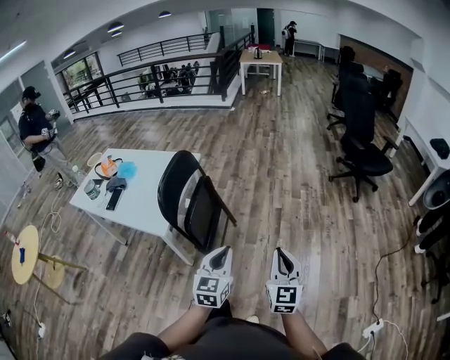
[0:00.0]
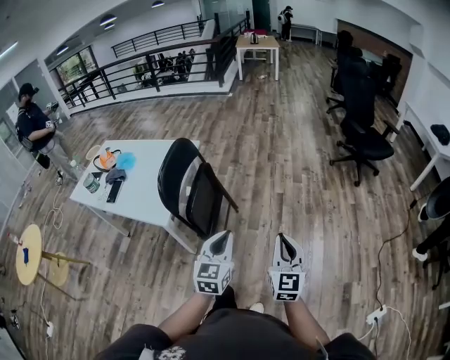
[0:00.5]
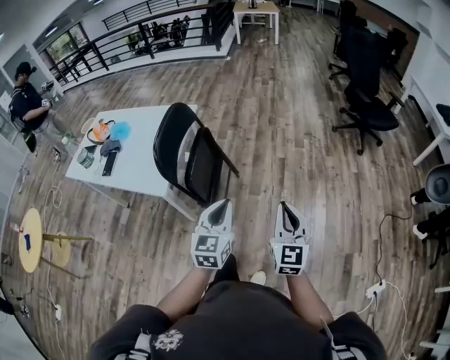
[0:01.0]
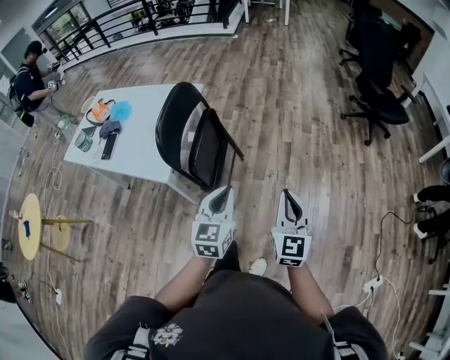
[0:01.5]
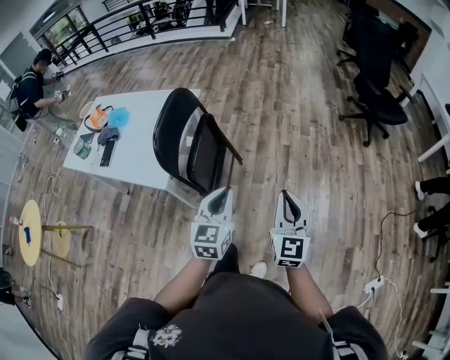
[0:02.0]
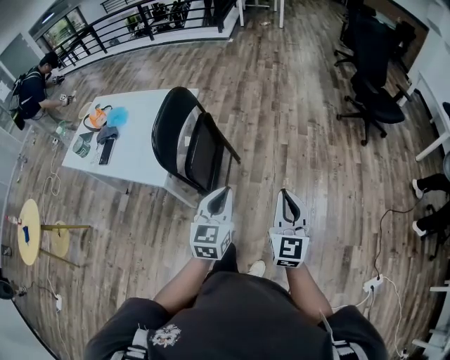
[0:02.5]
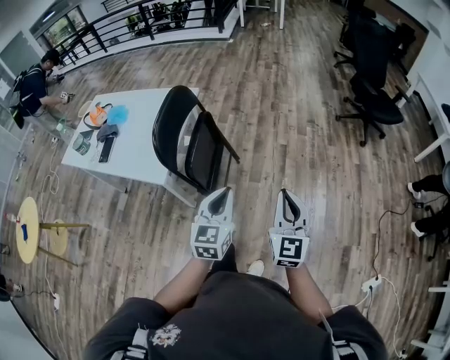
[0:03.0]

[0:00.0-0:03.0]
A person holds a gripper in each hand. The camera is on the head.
0:00.0 to 0:01.5: The right gripper heads forward, covering about 5 cm, while the left gripper travels forward and to the left by approximately 10 cm.
0:01.5 to 0:03.0: The grippers make only small movements.

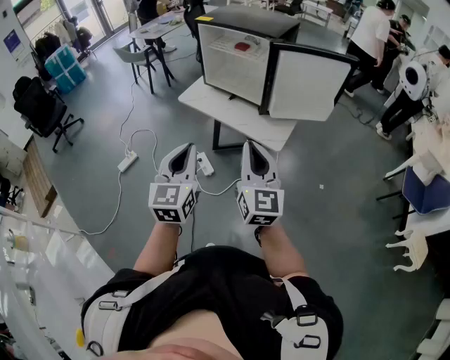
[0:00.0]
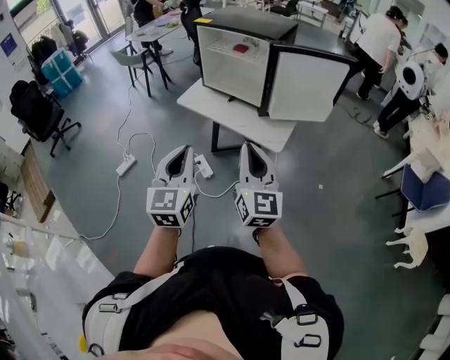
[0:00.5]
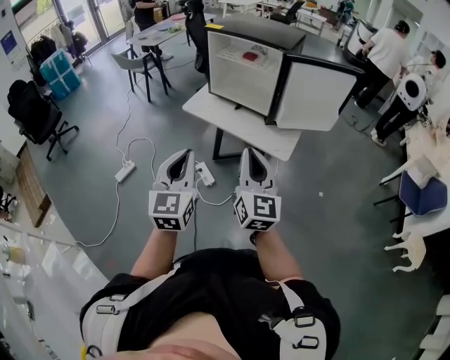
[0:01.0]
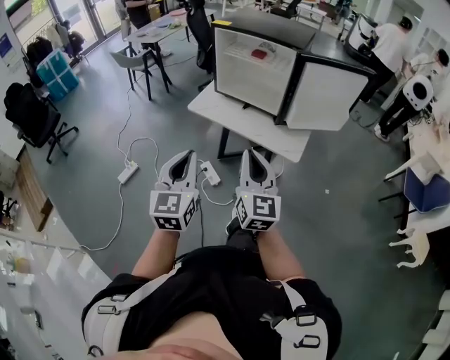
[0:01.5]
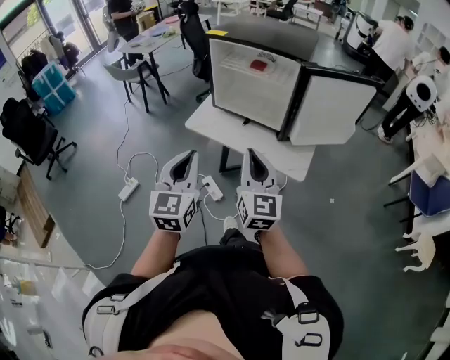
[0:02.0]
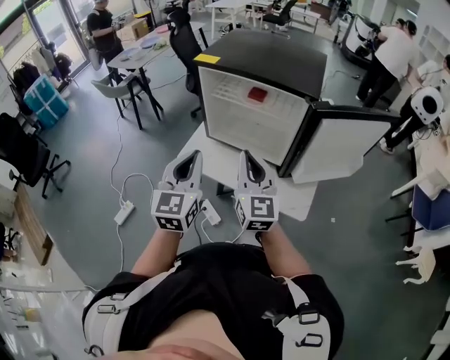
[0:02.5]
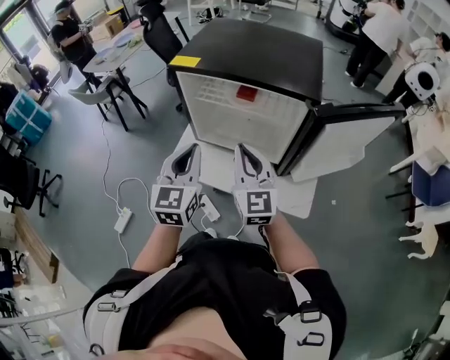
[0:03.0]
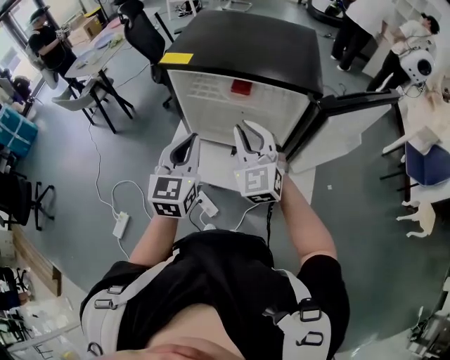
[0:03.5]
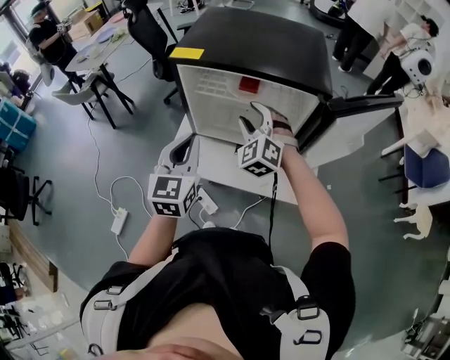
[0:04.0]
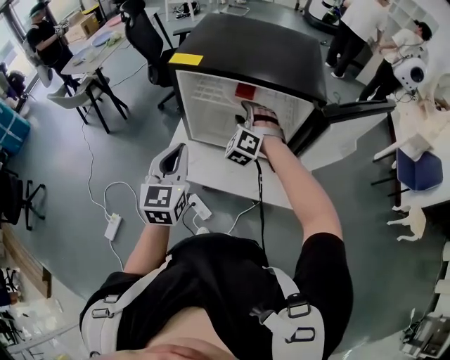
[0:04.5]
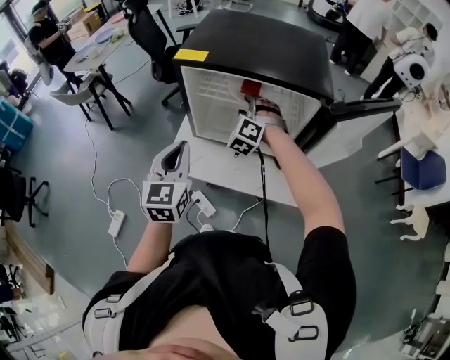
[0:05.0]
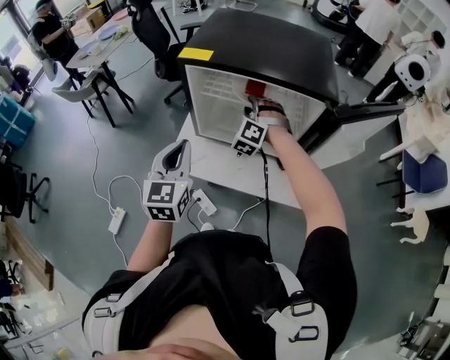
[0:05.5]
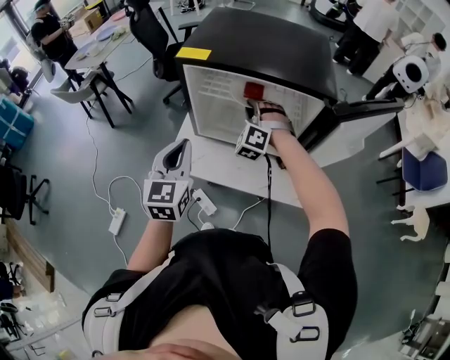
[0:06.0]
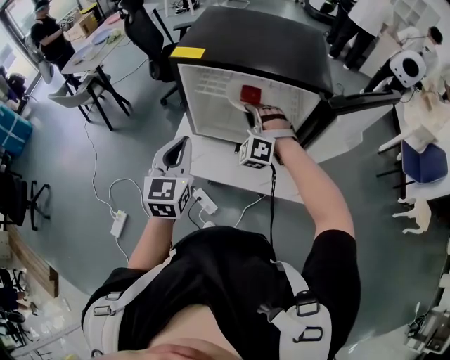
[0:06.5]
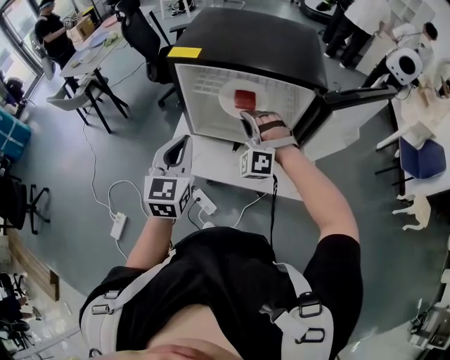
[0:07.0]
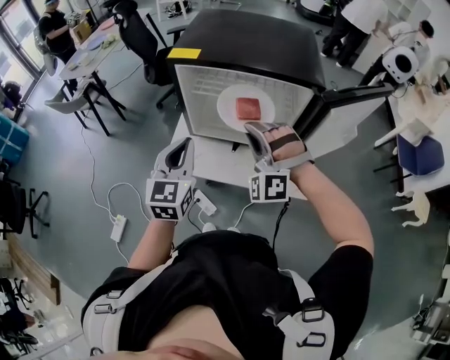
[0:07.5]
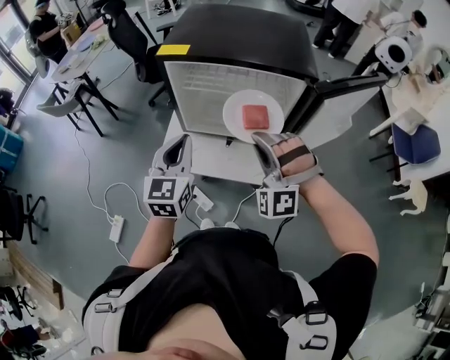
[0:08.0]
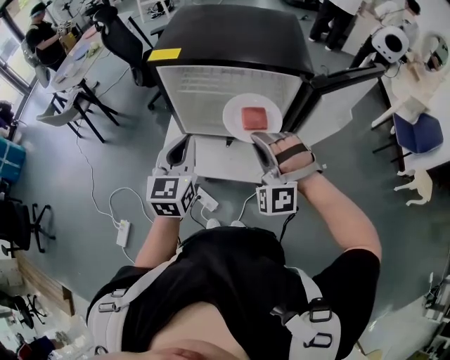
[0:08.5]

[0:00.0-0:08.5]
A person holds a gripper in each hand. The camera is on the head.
0:00.0 to 0:02.0: The two grippers go some 20 cm forward and to the left.
0:02.0 to 0:04.0: Both grippers travel together forward, about 35 cm. The right gripper rotates around the line of its fingers by about 50 degrees, counterclockwise from behind, and opens up.
0:04.0 to 0:06.5: The right gripper rotates some 30 degrees, and closes its fingers.
0:06.5 to 0:08.5: The right gripper is displaced backward by some 15 cm.

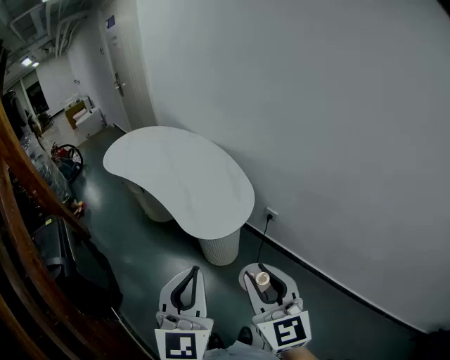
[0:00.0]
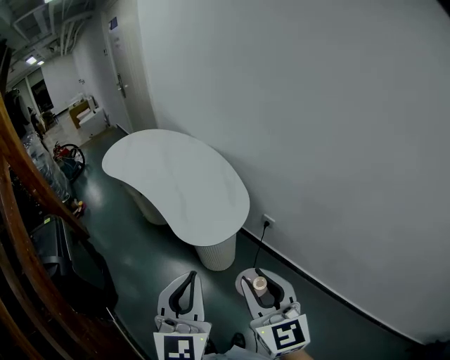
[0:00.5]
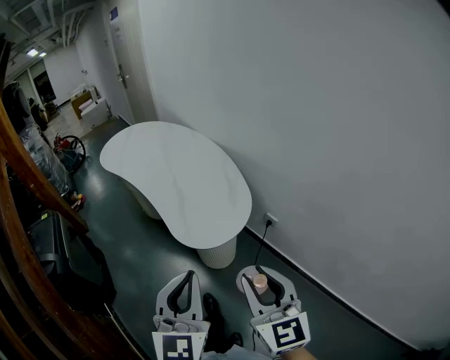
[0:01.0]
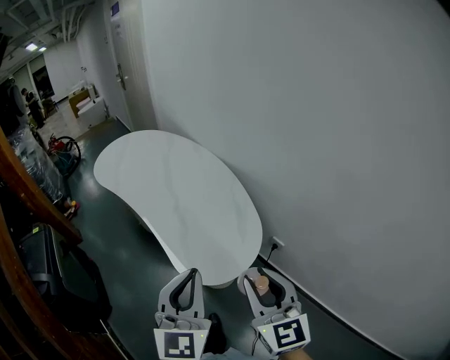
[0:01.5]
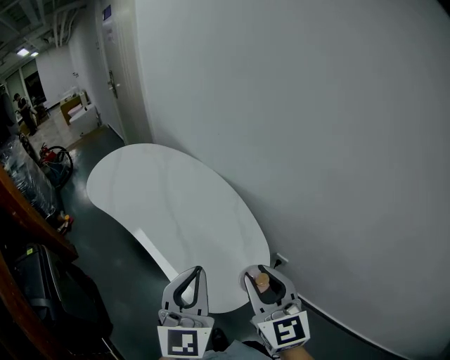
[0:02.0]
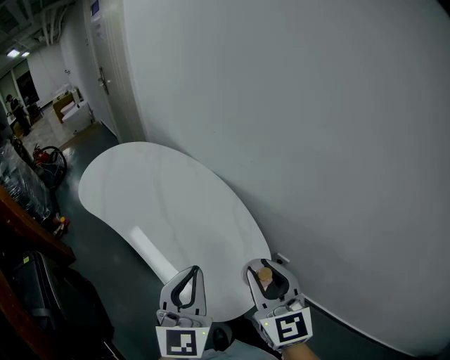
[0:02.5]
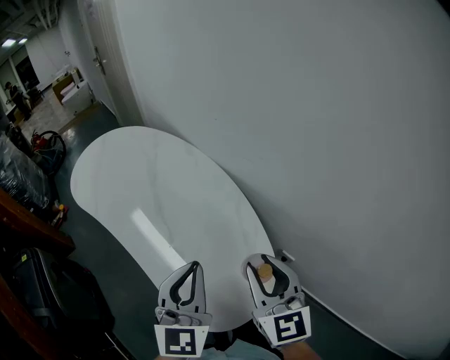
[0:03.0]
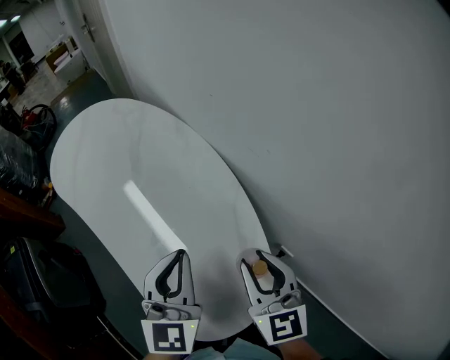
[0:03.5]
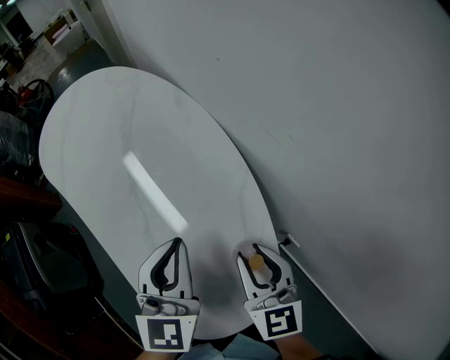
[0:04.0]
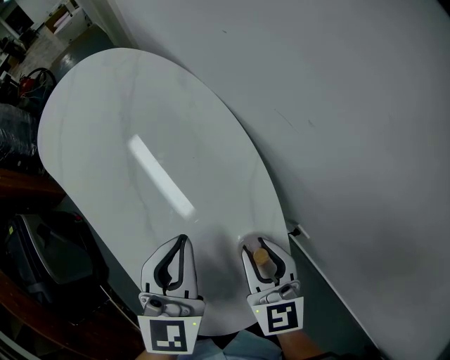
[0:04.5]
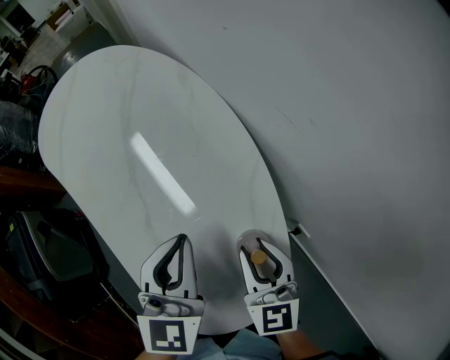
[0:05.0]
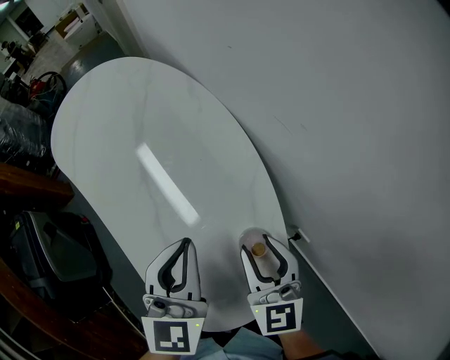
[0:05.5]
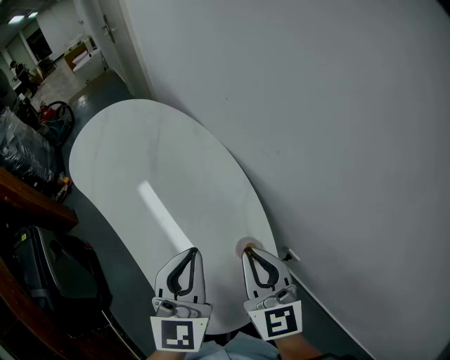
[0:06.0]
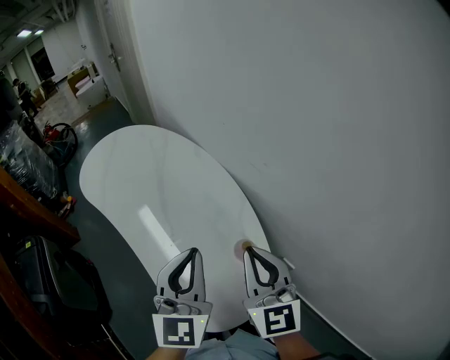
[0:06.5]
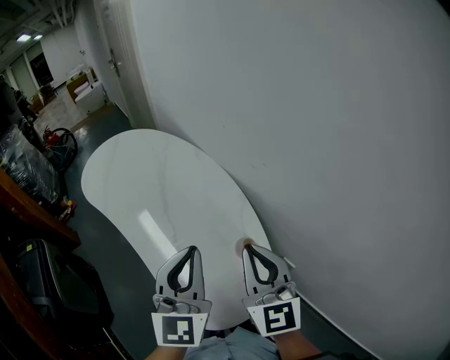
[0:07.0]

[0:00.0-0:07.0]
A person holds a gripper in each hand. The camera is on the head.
0:00.0 to 0:02.0: Both grippers move forward, roughly 20 cm.
0:02.0 to 0:03.5: The left gripper goes approximately 15 cm forward and downward, while the right gripper goes about 15 cm forward.
0:03.5 to 0:05.0: The right gripper goes roughly 10 cm downward.
0:05.0 to 0:07.0: The two grippers go some 15 cm upward. The left gripper changes its angle by roughly 20 degrees; the right gripper changes its angle by some 30 degrees, and closes up.

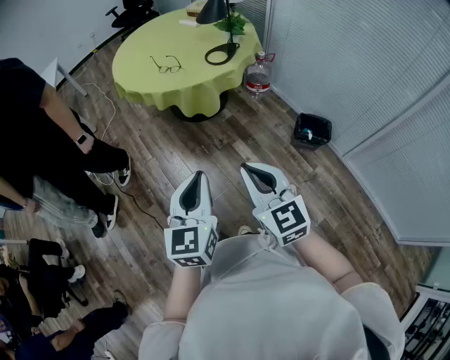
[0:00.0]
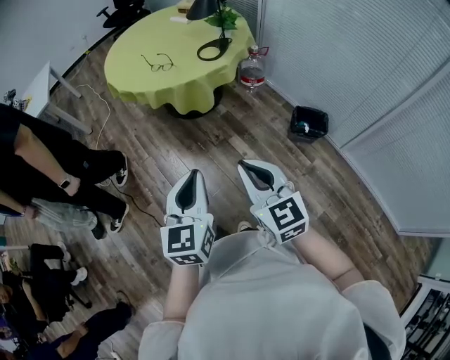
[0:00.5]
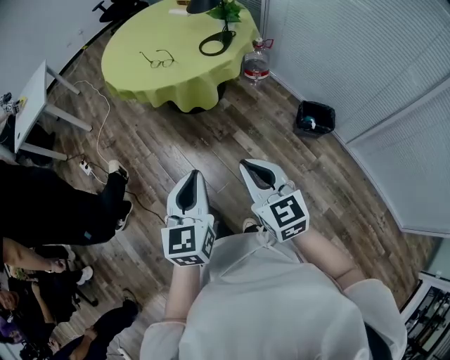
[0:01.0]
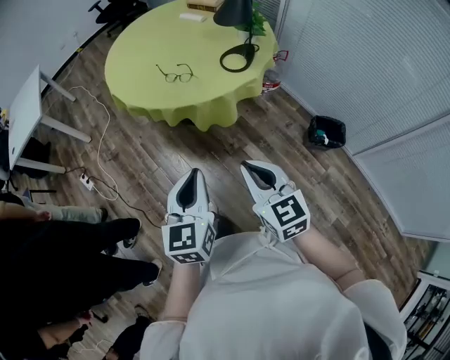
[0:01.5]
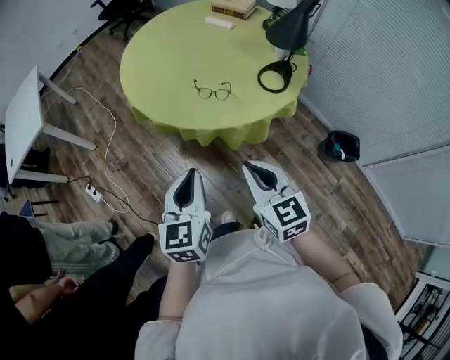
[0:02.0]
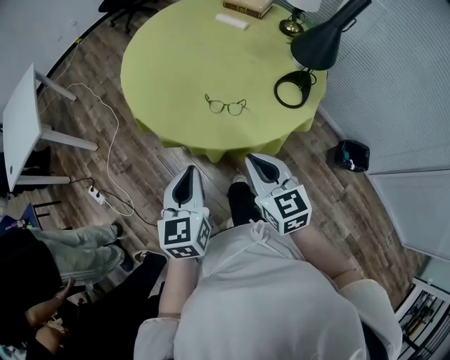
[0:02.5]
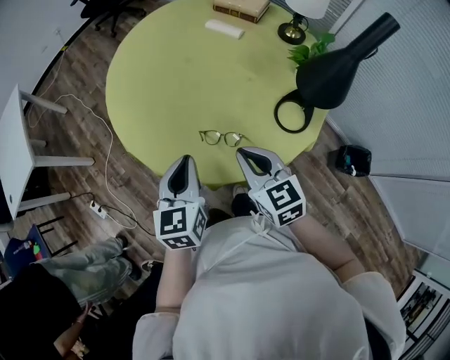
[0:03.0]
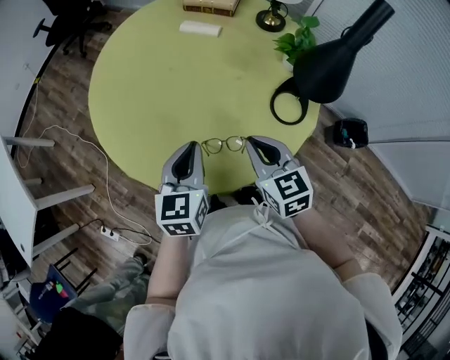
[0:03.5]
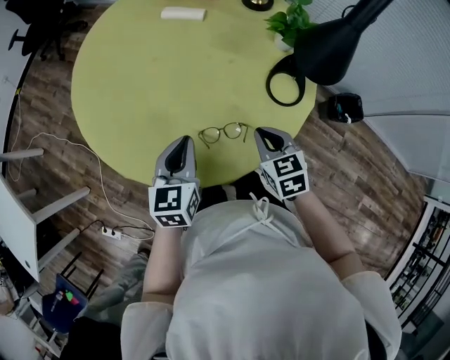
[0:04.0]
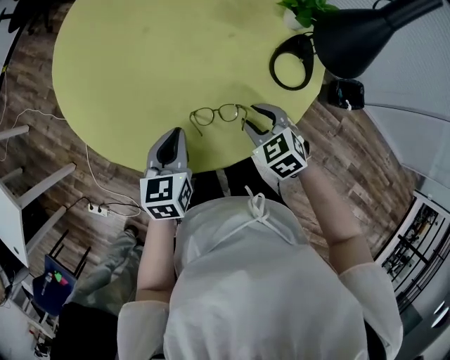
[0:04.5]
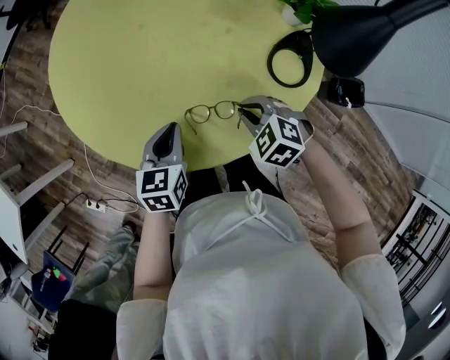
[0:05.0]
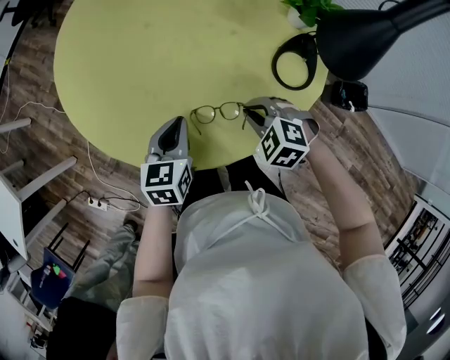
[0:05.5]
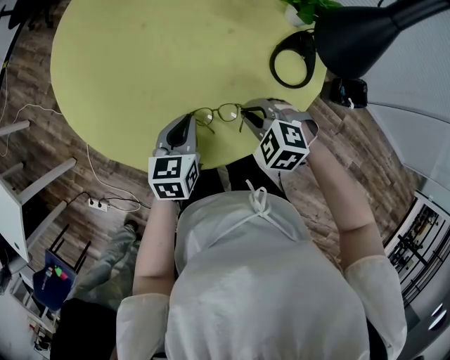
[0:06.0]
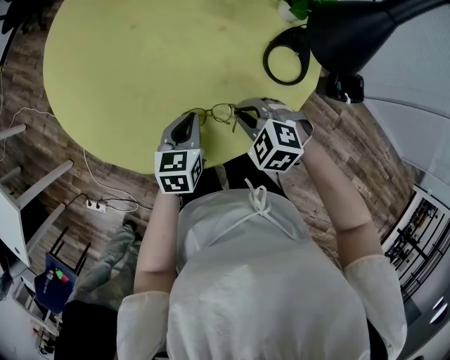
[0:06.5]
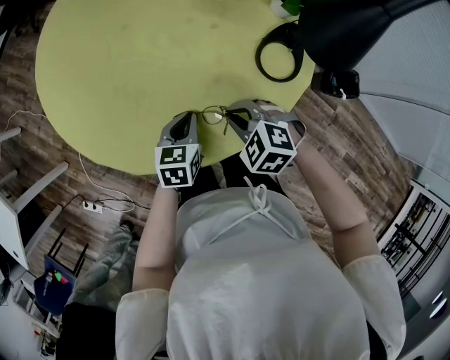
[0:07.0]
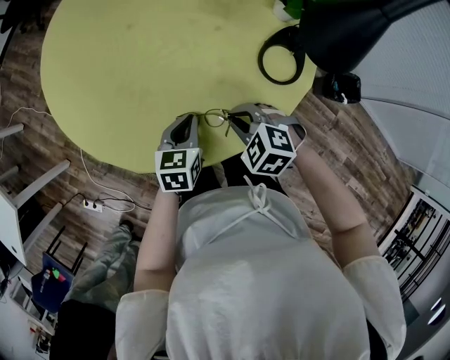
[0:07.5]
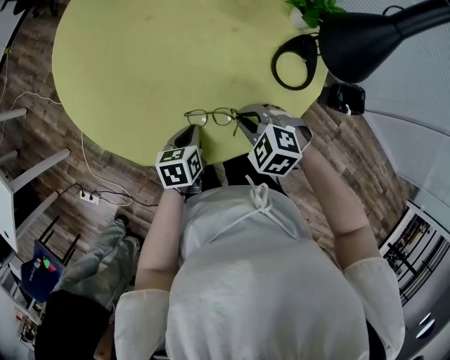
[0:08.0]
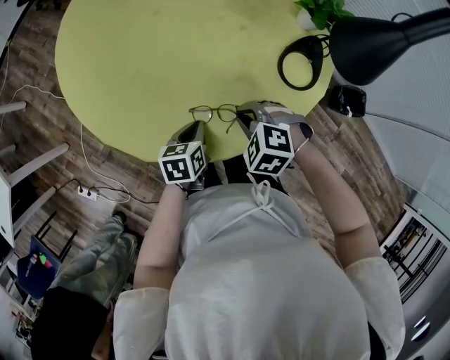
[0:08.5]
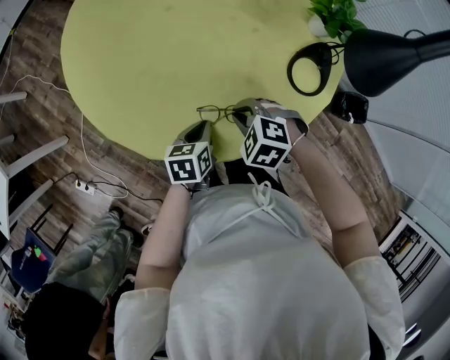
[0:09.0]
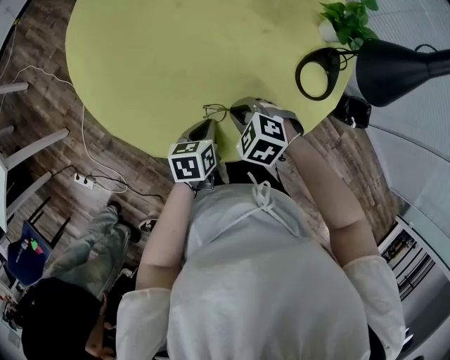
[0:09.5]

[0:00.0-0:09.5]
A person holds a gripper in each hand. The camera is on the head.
0:00.0 to 0:02.0: The two grippers travel together, forward and to the left, about 50 cm.
0:02.0 to 0:04.0: The right gripper ends up some 40 cm from where it was, and changes its angle by about 30 degrees, while the left gripper ends up about 40 cm from where it was, and swivels roughly 30 degrees.
0:04.0 to 0:05.5: Both grippers move downward, roughly 10 cm. The right gripper rolls counterclockwise, seen from behind, by about 50 degrees, and opens, then closes once more.
0:05.5 to 0:07.5: The left gripper shifts some 10 cm to the right and downward.
0:07.5 to 0:09.5: Both grippers move to the left, some 5 cm. The left gripper turns by approximately 20 degrees.
